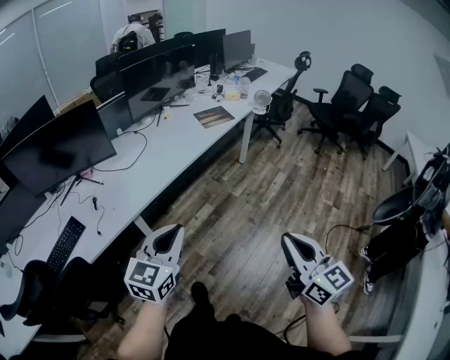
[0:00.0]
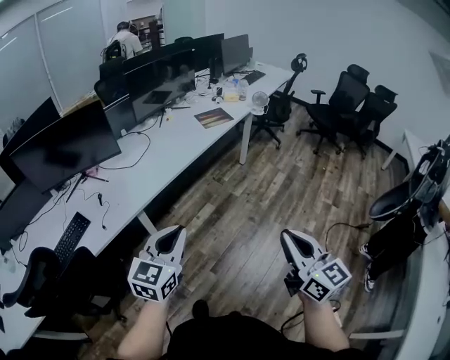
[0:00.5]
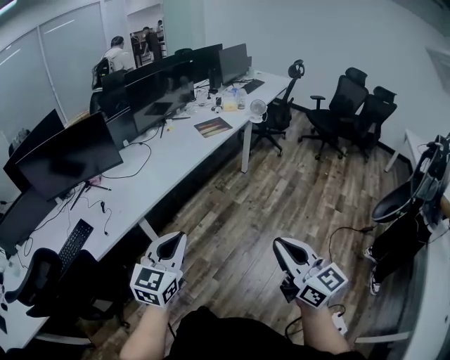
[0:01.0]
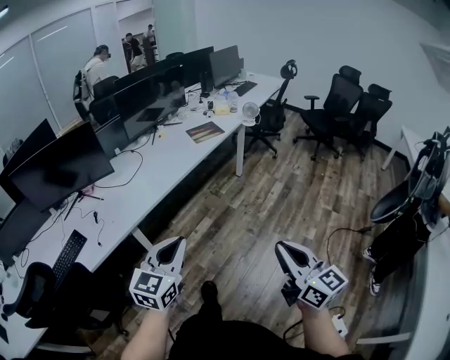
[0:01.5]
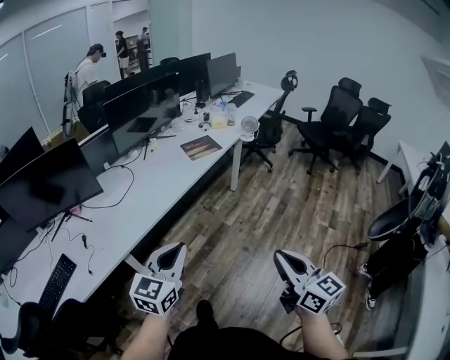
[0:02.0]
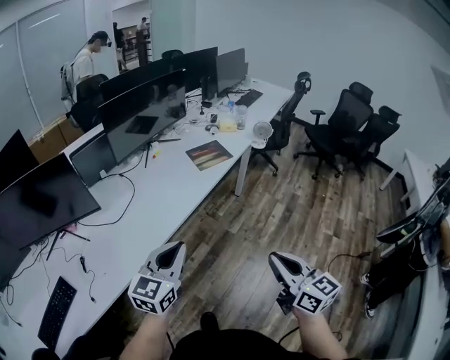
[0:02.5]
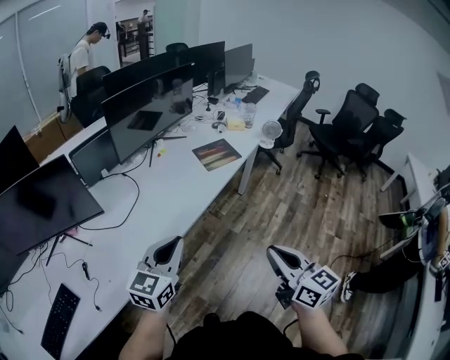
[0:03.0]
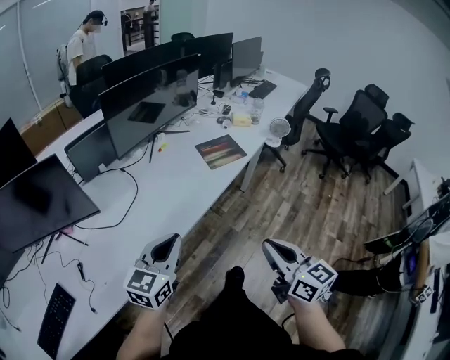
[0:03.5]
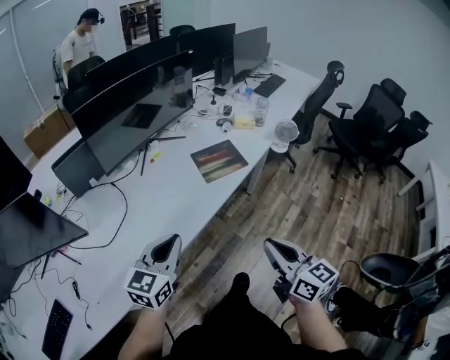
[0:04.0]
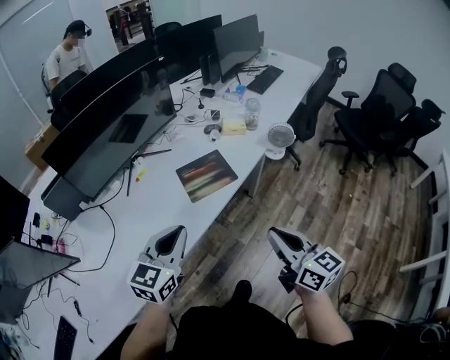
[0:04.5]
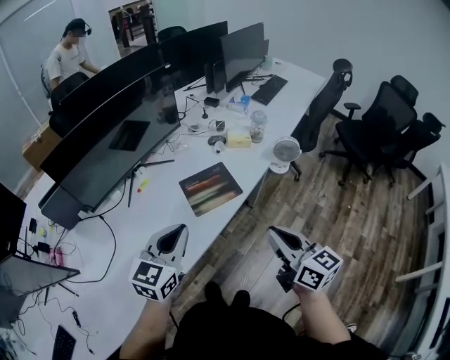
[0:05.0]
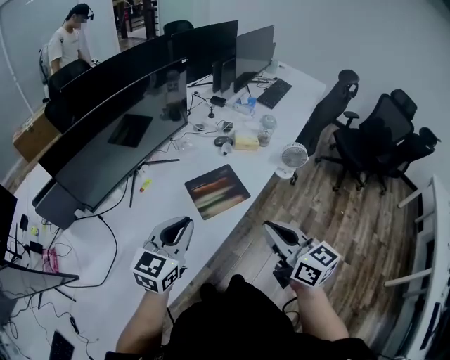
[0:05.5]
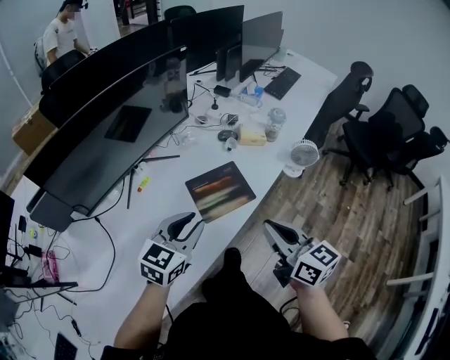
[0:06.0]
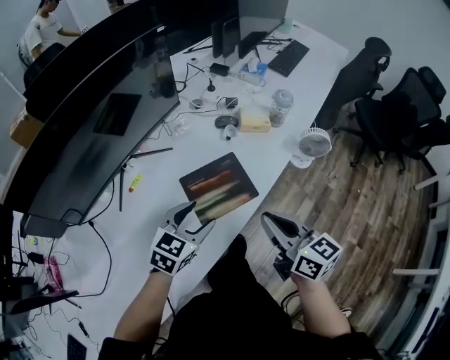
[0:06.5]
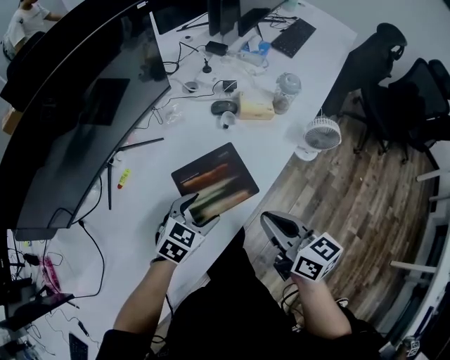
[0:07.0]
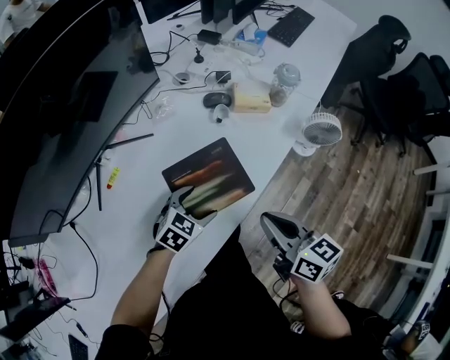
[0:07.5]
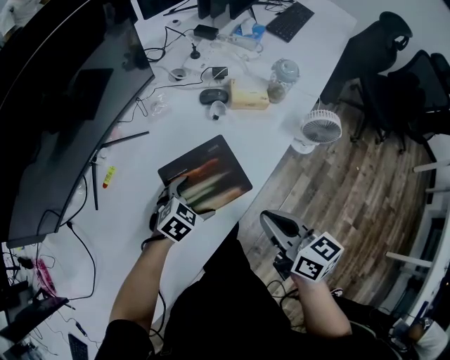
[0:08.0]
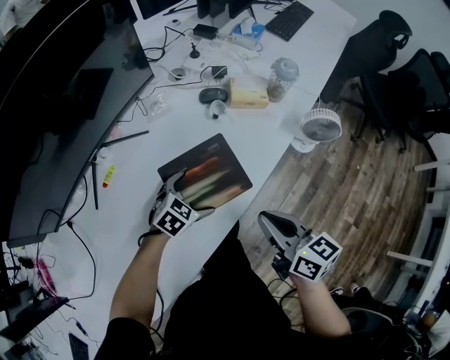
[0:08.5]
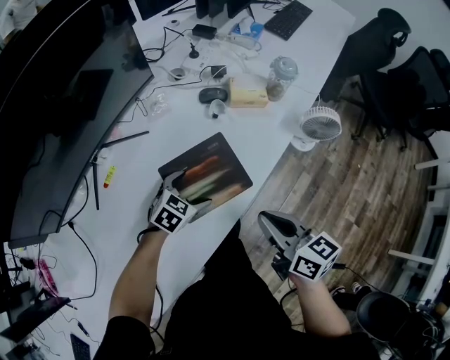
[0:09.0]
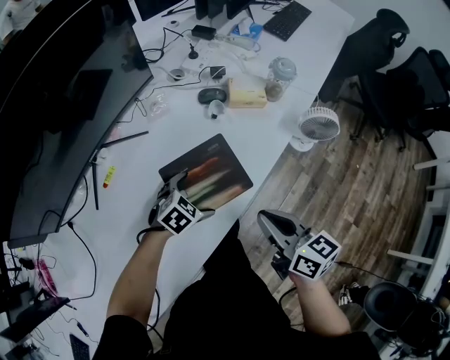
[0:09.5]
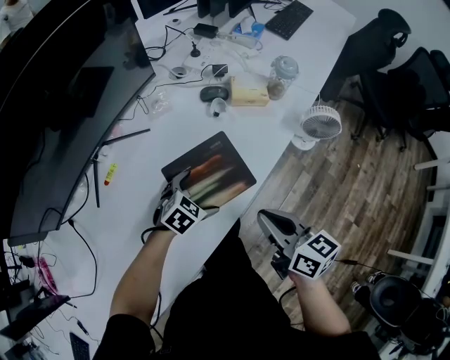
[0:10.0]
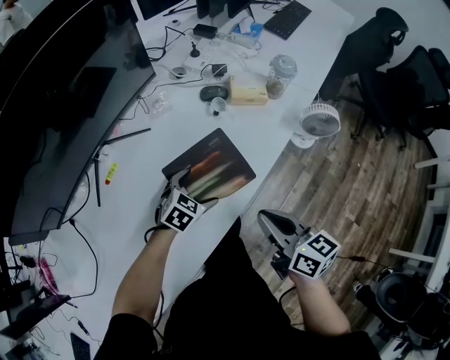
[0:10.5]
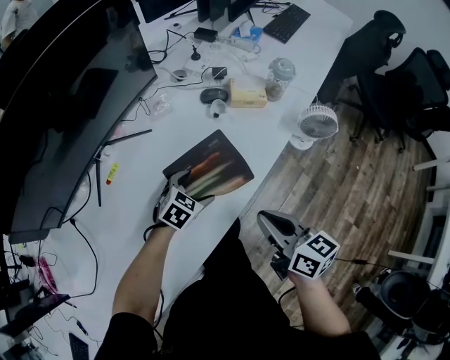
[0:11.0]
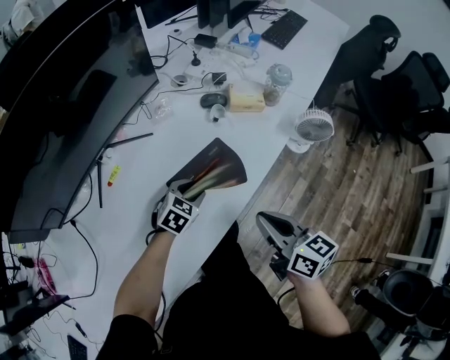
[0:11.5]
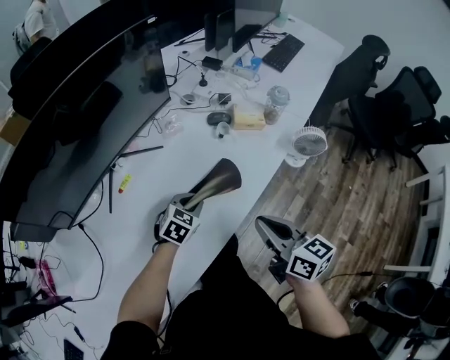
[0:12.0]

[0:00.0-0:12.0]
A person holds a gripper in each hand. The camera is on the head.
0:00.0 to 0:02.0: The left gripper is displaced forward and to the right by some 10 cm. The right gripper goes approximately 10 cm forward.
0:02.0 to 0:04.0: Both grippers move forward, roughly 40 cm.
0:04.0 to 0:06.0: The grippers both shift forward by roughly 30 cm.
0:06.0 to 0:08.0: The right gripper goes roughly 20 cm downward and forward. The left gripper travels downward and forward by roughly 30 cm, points its fingers about 30 degrees further downward, and opens up.
0:08.0 to 0:10.0: The grippers move only a little.
0:10.0 to 0:12.0: Both grippers move upward, roughly 5 cm. The left gripper closes.

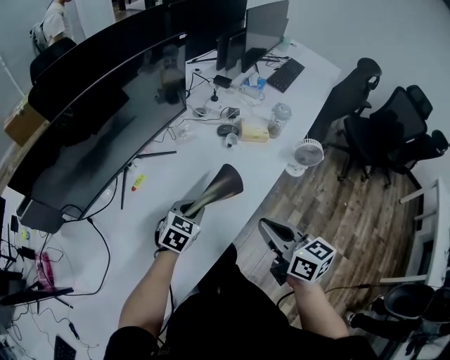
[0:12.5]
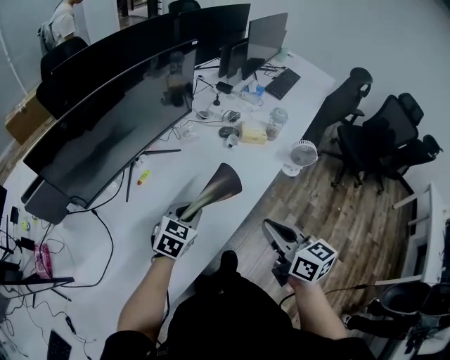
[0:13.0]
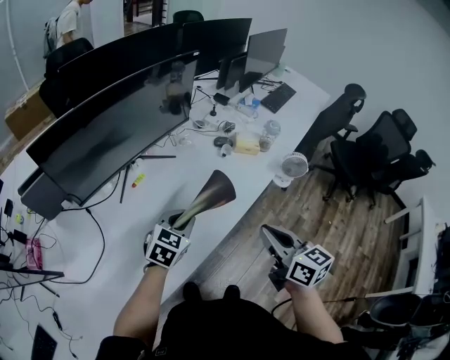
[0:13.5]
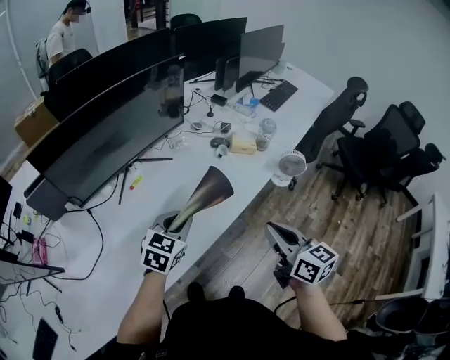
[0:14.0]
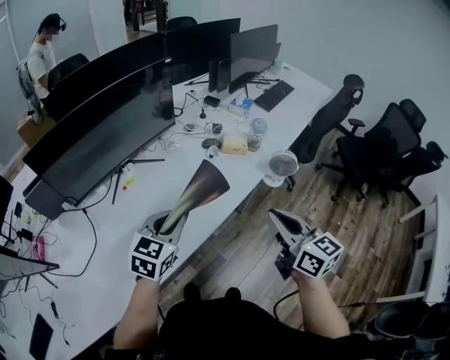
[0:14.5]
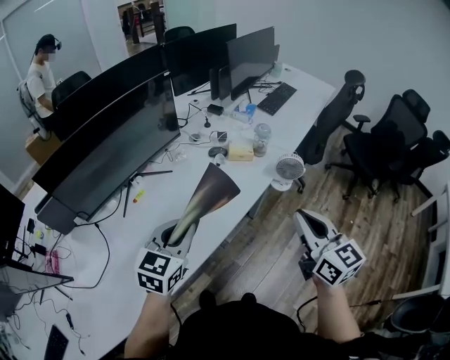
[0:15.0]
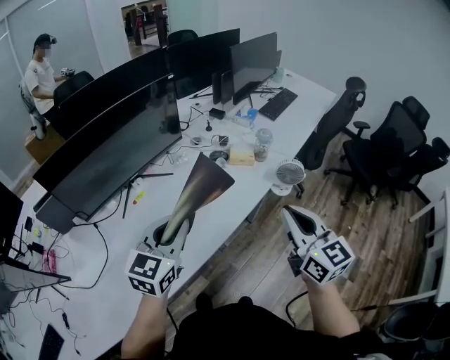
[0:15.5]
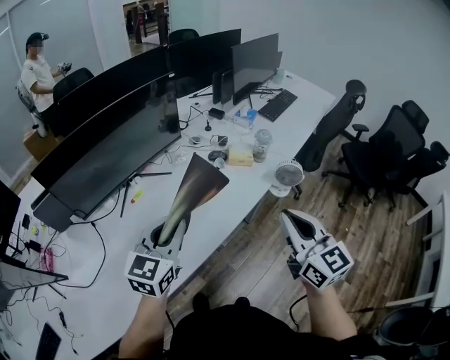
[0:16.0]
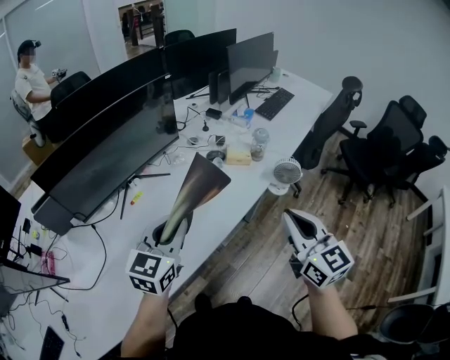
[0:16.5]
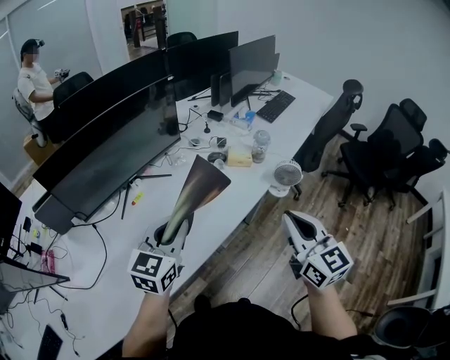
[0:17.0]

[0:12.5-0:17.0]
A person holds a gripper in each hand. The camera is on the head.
0:12.5 to 0:14.5: The left gripper is displaced upward and backward by some 20 cm. The right gripper travels to the right and upward by roughly 15 cm.
0:14.5 to 0:17.0: The left gripper travels upward by some 5 cm.

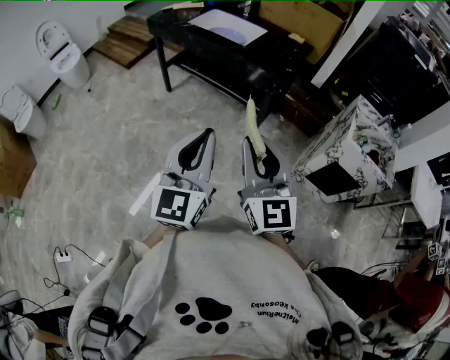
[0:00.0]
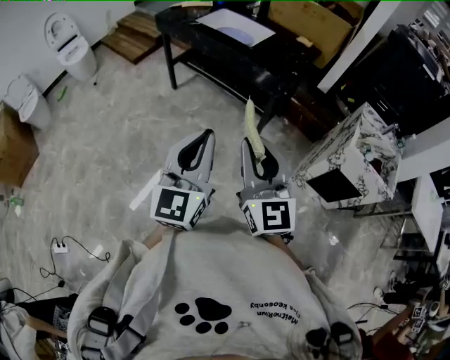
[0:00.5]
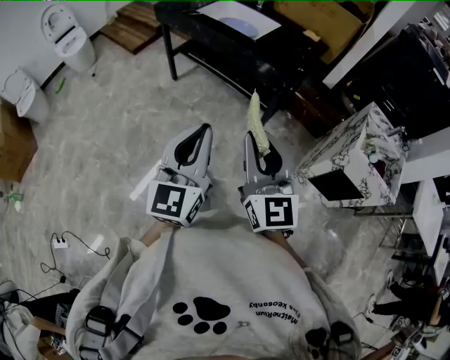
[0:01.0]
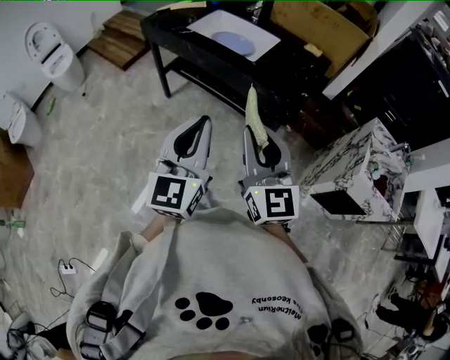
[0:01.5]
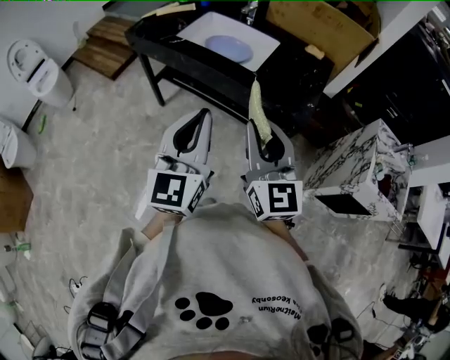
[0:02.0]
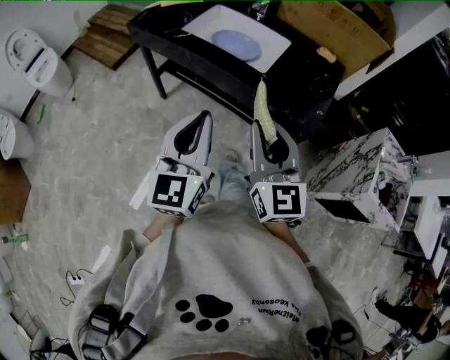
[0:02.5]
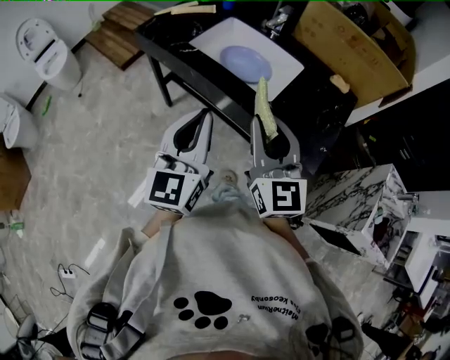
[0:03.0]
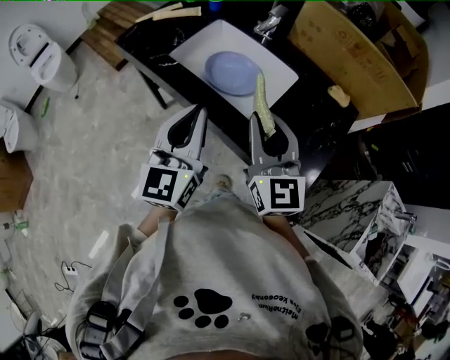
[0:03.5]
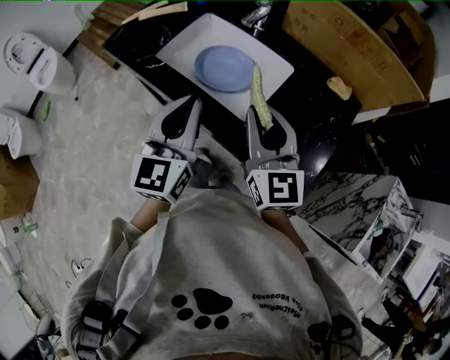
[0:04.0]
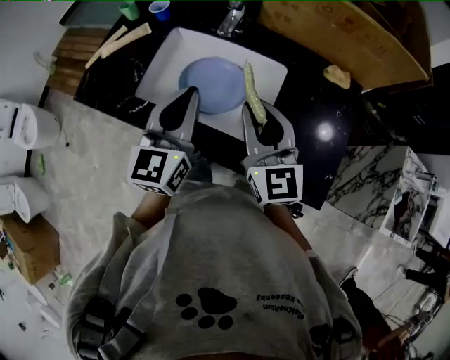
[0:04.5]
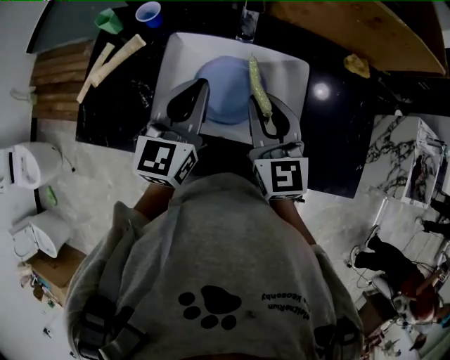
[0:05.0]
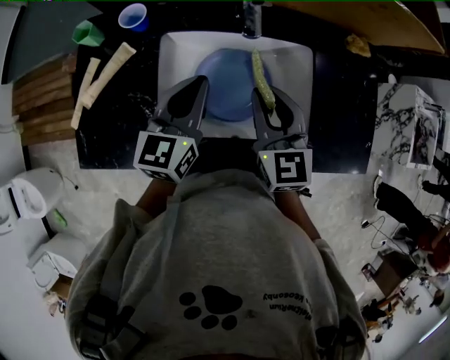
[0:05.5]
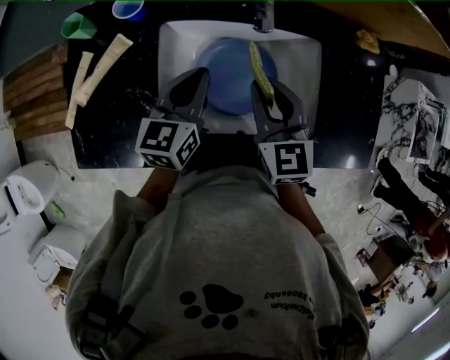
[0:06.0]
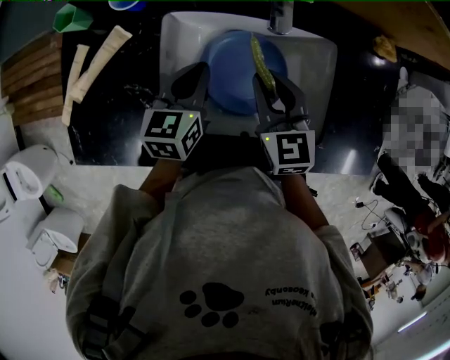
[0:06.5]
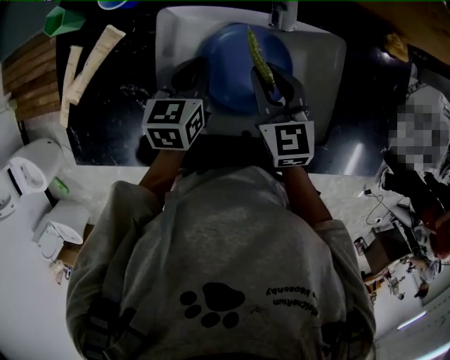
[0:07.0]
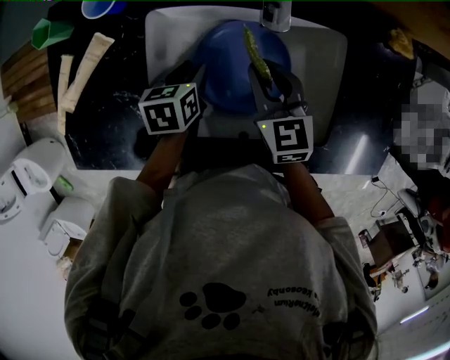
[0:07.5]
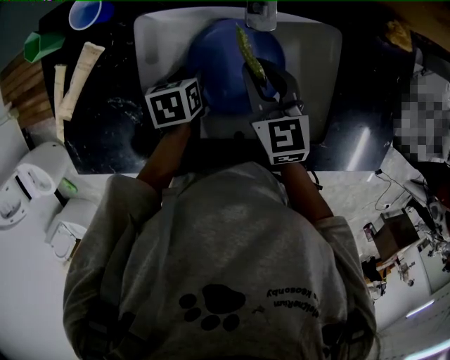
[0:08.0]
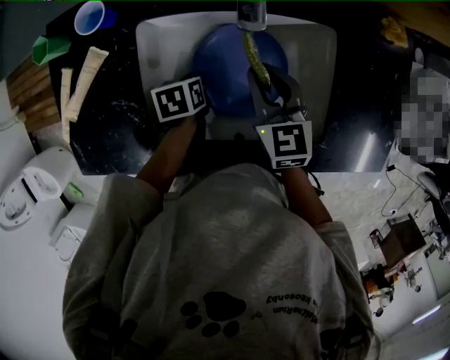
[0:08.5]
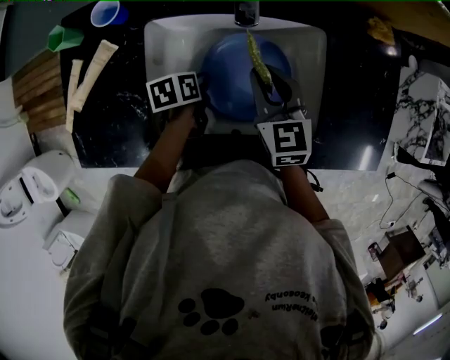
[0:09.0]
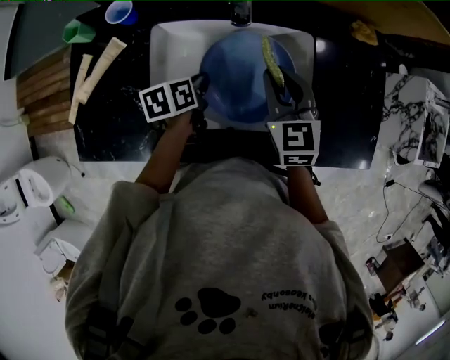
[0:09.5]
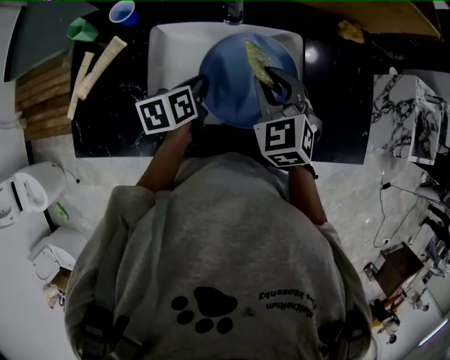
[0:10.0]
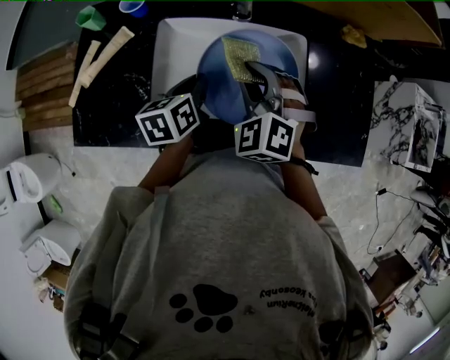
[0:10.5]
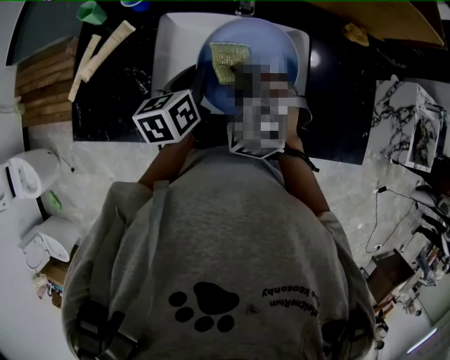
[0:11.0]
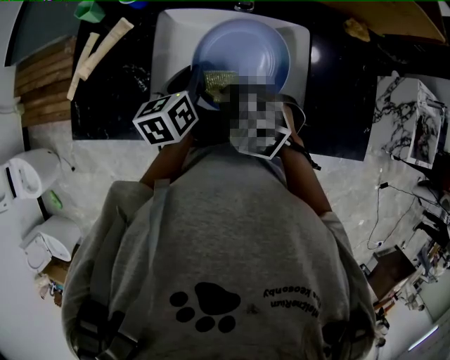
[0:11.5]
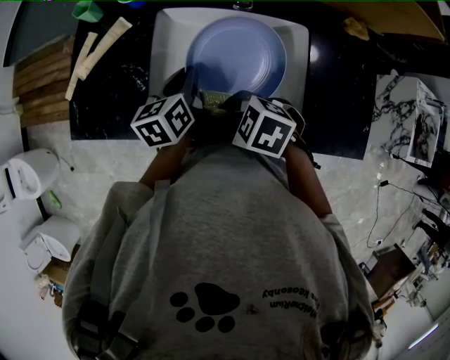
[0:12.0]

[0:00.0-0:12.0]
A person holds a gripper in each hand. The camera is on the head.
0:00.0 to 0:02.0: Both grippers travel together forward, about 35 cm.
0:02.0 to 0:04.0: The grippers both shift forward by some 30 cm.
0:04.0 to 0:06.0: The right gripper shifts by about 30 cm, and rotates approximately 40 degrees. The left gripper moves roughly 35 cm, and turns by about 50 degrees.
0:06.0 to 0:08.0: The left gripper moves downward, roughly 20 cm, tips its fingers downward by some 50 degrees, and opens up; the right gripper heads downward, covering roughly 10 cm.
0:08.0 to 0:10.0: Both grippers travel together upward and to the right, roughly 15 cm. The right gripper swivels about 30 degrees. The left gripper swivels some 30 degrees, and closes its fingers.
0:10.0 to 0:12.0: The right gripper ends up about 20 cm from where it was, and changes its angle by approximately 60 degrees; the left gripper shifts by approximately 5 cm.
